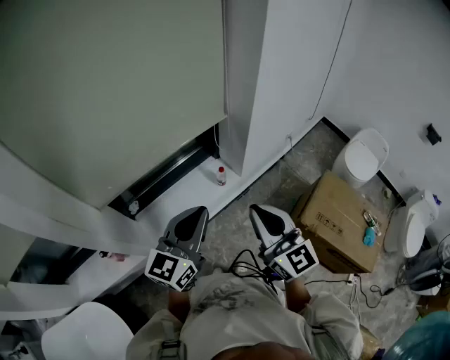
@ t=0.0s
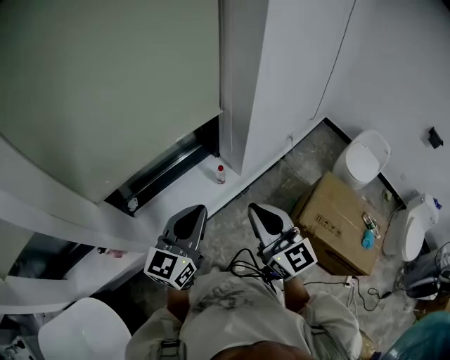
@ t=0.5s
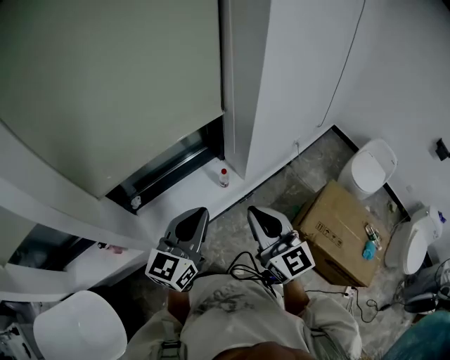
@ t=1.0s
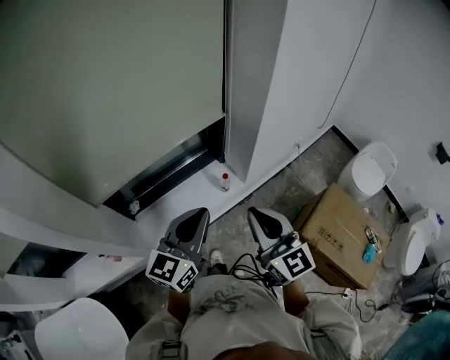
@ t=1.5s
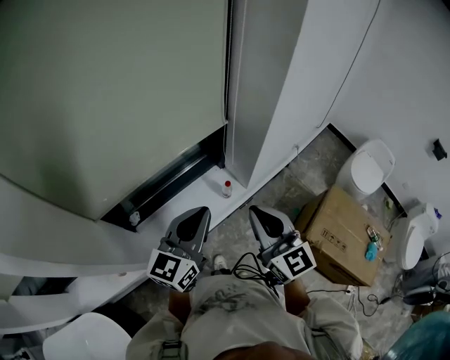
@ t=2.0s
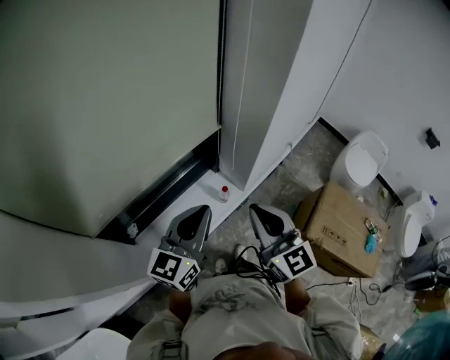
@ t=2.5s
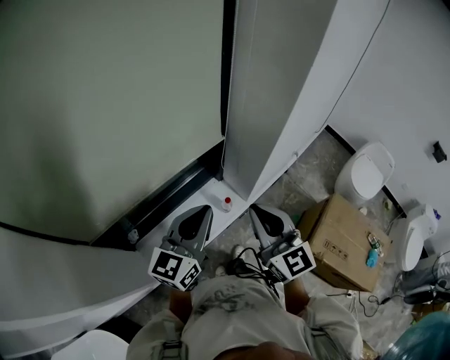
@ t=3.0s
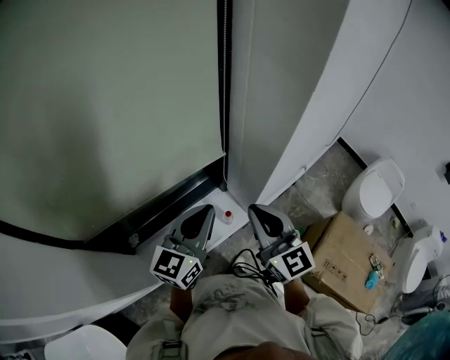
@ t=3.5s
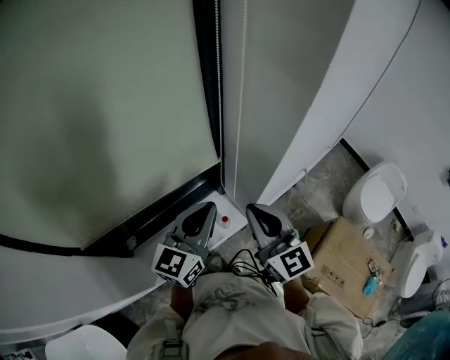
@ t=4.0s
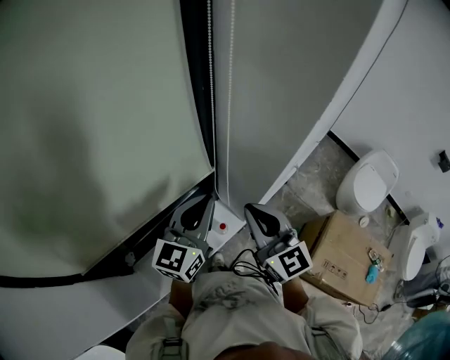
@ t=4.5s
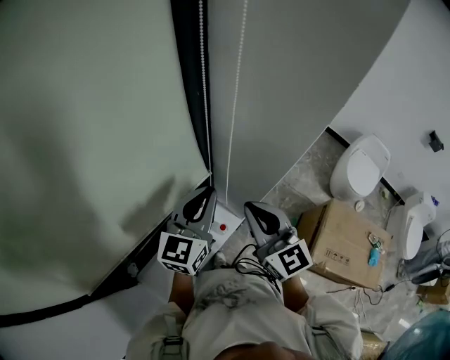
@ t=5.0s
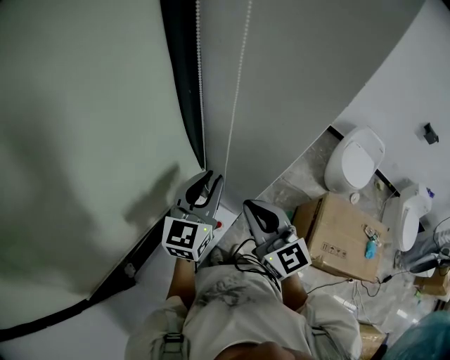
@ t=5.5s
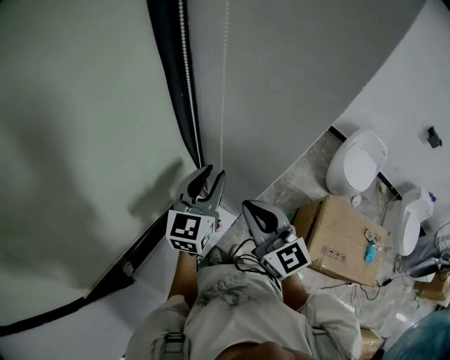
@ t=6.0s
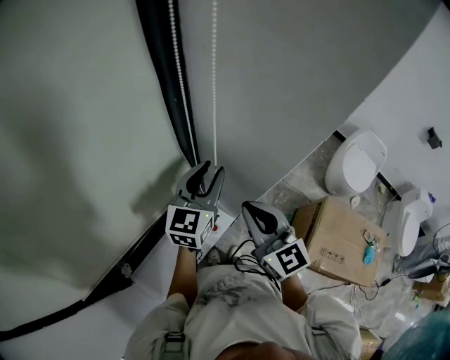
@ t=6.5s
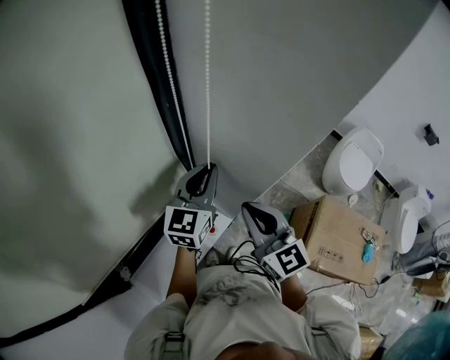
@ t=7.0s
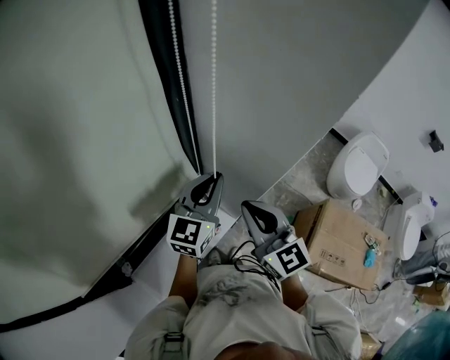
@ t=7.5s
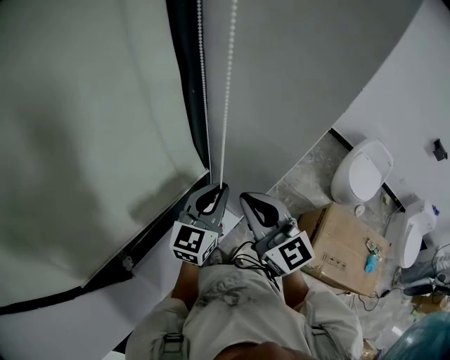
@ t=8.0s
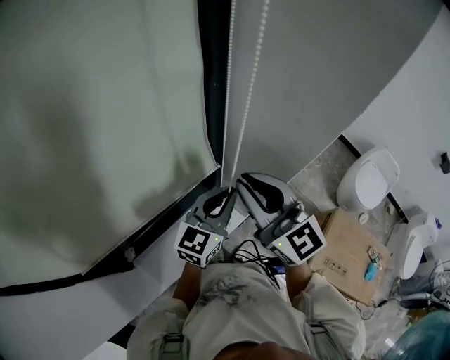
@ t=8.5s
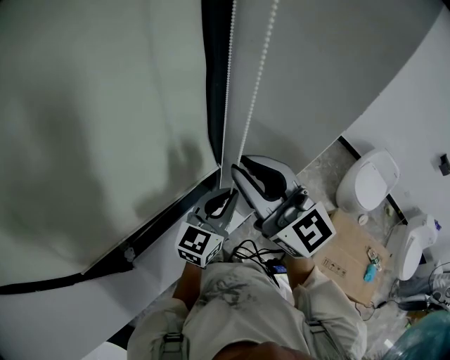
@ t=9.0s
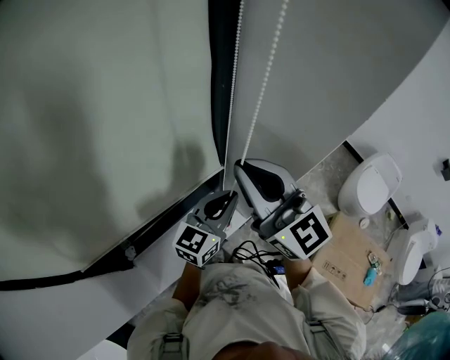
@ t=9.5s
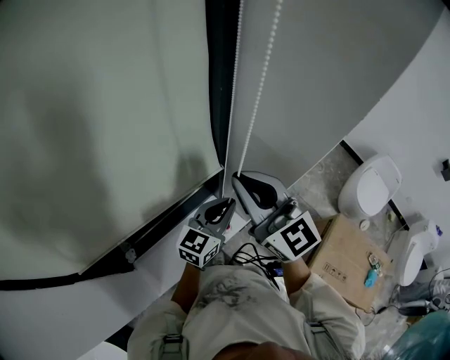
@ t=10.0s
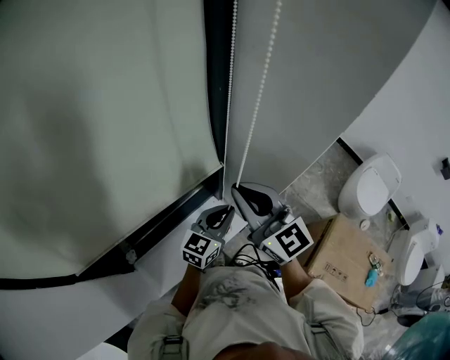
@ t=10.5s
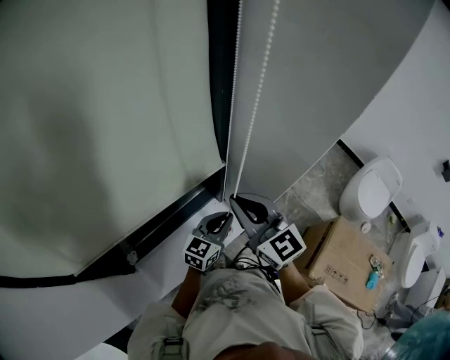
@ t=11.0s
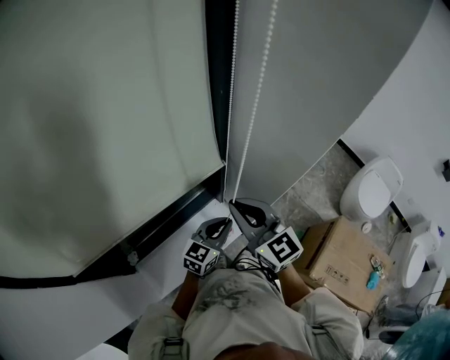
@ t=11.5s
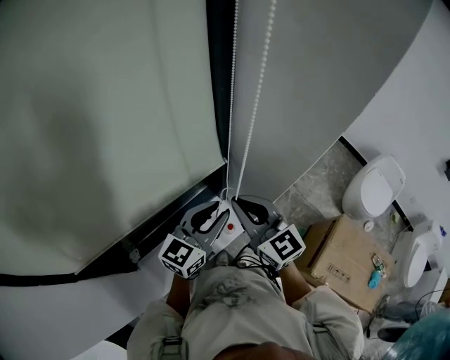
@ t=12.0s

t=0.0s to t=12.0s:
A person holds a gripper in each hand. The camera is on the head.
t=0.0s to t=2.0s: Both grippers travel together forward, about 10 cm.
t=2.0s to t=4.0s: Both grippers travel together forward, about 20 cm.
t=4.0s to t=6.0s: The right gripper shifts some 5 cm forward. Meanwhile the left gripper is displaced forward by about 15 cm, and opens up.
t=6.0s to t=8.0s: The left gripper closes its fingers.
t=8.0s to t=10.0s: The right gripper goes about 10 cm upward and to the left. Meanwhile the left gripper heads downward, covering about 5 cm.
t=10.0s to t=12.0s: The left gripper reaches roughly 10 cm downward, then returns, and opens; the right gripper travels downward by roughly 10 cm.

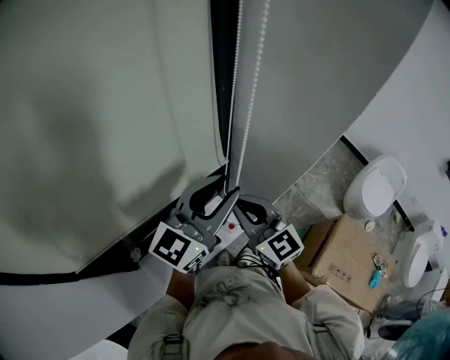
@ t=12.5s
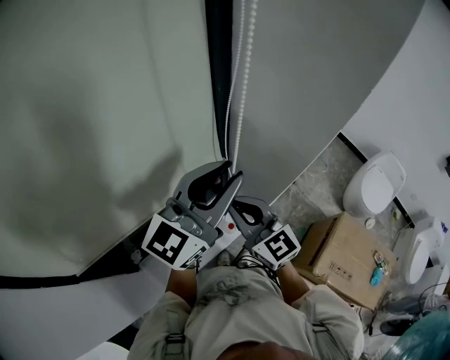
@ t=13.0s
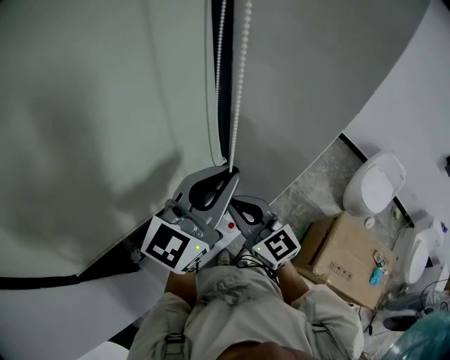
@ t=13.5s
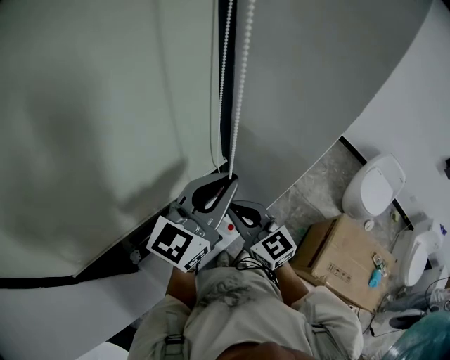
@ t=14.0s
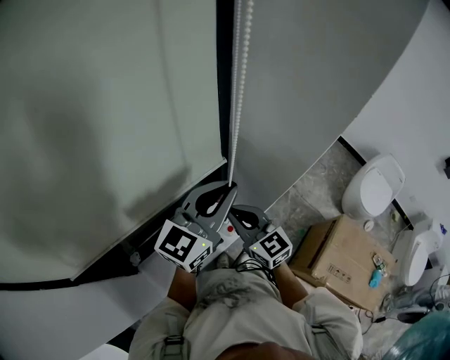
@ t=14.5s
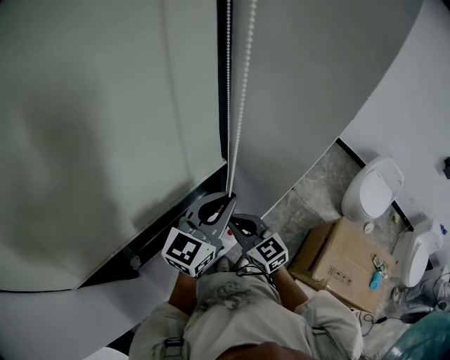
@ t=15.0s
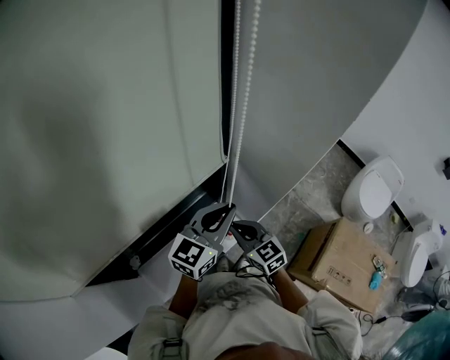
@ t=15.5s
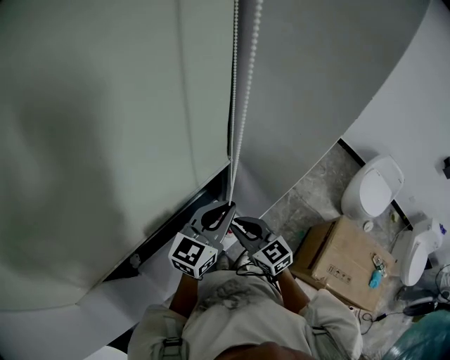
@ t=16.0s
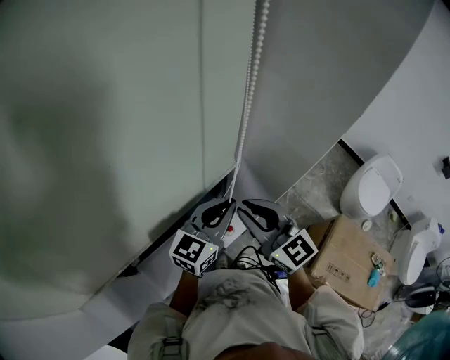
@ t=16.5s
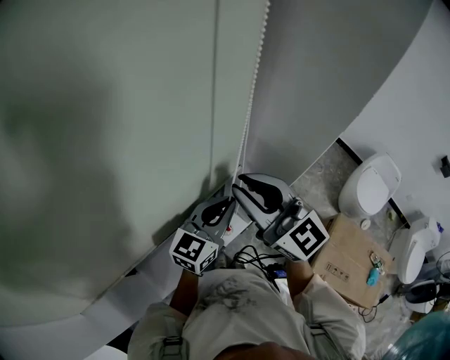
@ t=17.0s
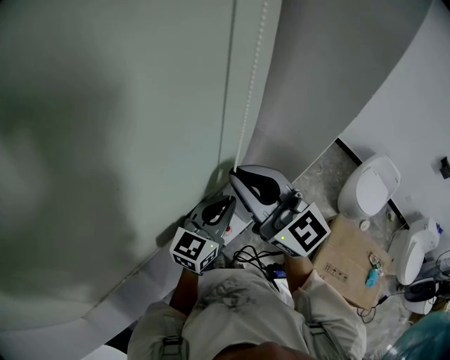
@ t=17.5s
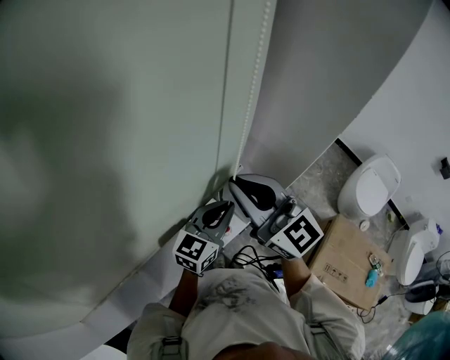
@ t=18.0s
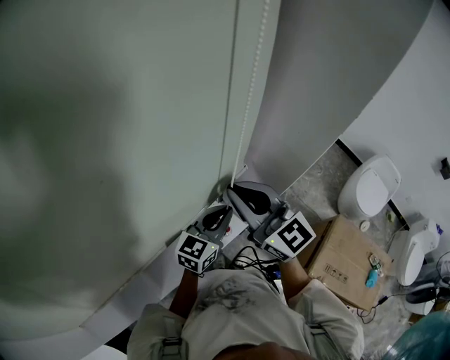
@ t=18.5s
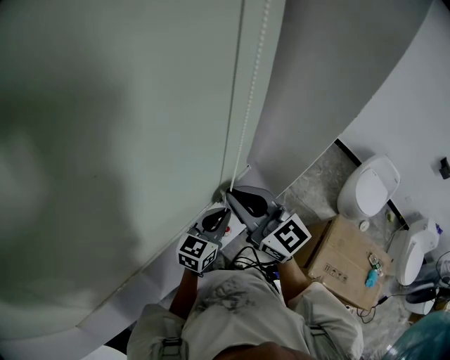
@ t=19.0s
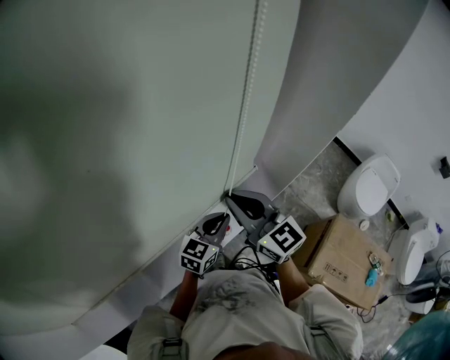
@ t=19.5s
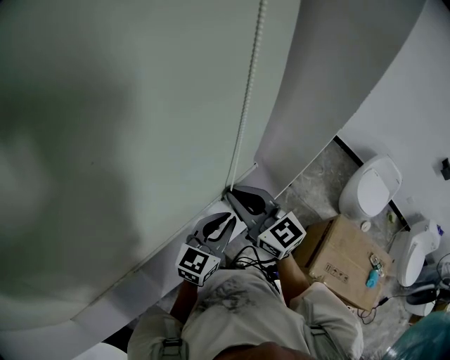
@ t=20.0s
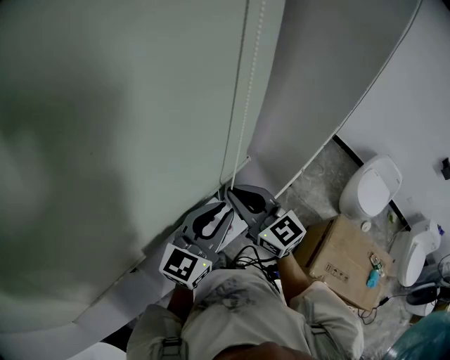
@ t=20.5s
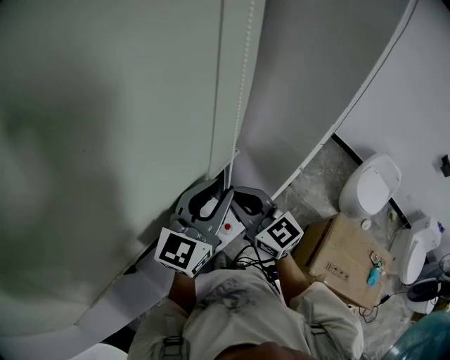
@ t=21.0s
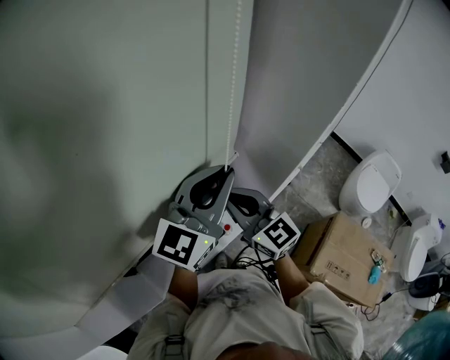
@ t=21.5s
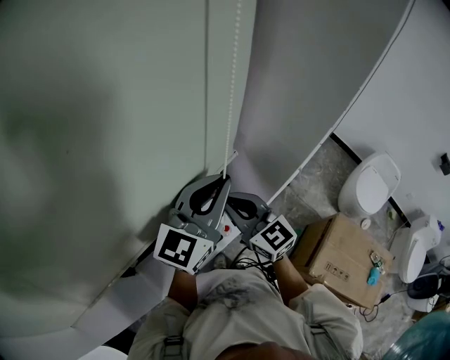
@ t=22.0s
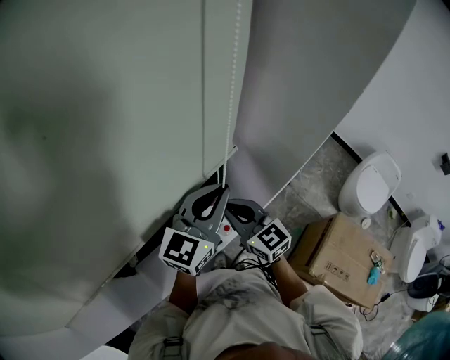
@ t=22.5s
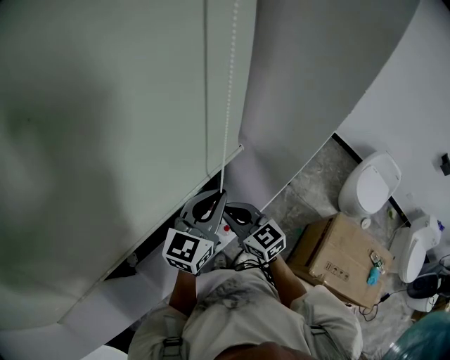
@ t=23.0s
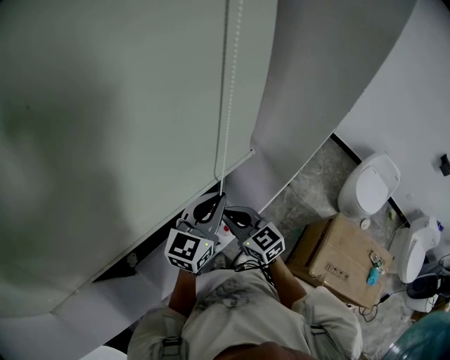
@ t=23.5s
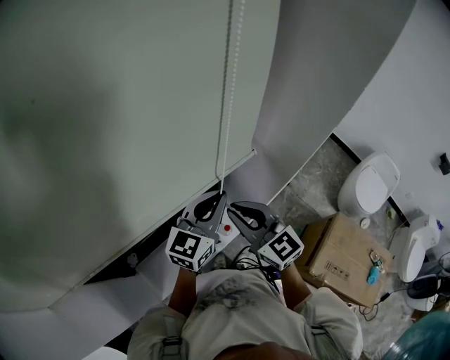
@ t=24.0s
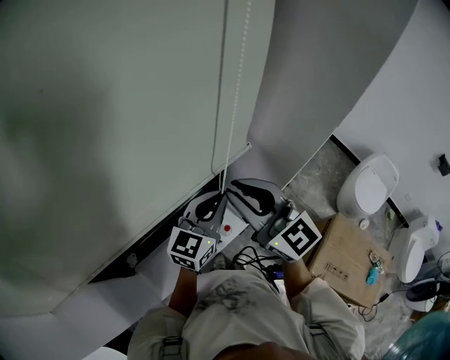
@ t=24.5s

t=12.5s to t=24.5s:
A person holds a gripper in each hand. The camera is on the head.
t=12.5s to t=14.5s: The right gripper goes about 10 cm downward. The left gripper goes upward and returns, about 5 cm each way, and closes up.
t=14.5s to t=16.5s: The right gripper shifts about 10 cm upward. The left gripper is displaced downward by about 10 cm.
t=16.5s to t=18.5s: The left gripper shifts some 10 cm downward.
t=18.5s to t=20.5s: The left gripper moves upward, roughly 10 cm. Meanwhile the right gripper heads downward, covering roughly 5 cm.
t=20.5s to t=22.5s: The left gripper is displaced forward by some 5 cm, and goes upward and returns, roughly 10 cm each way. Meanwhile the right gripper shifts roughly 5 cm downward.
t=22.5s to t=24.5s: The left gripper moves downward, about 5 cm, while the right gripper goes approximately 15 cm upward.

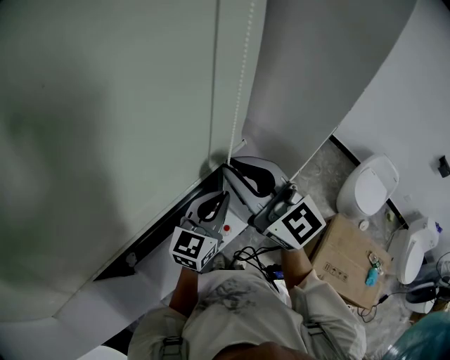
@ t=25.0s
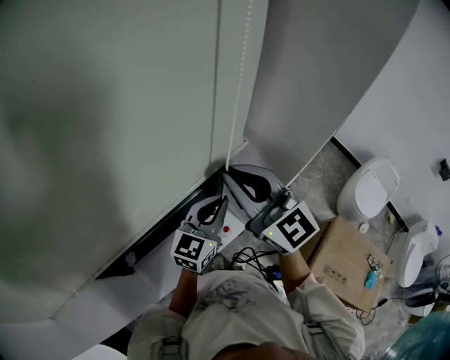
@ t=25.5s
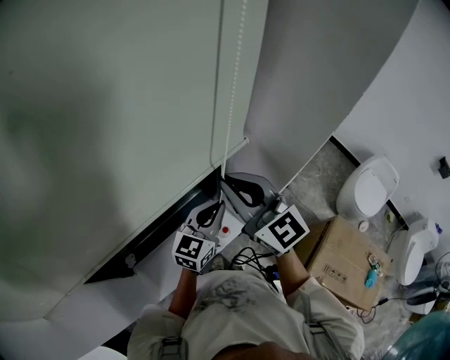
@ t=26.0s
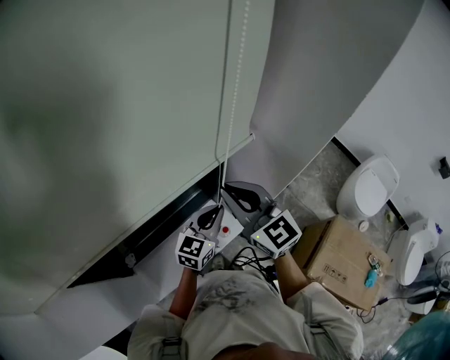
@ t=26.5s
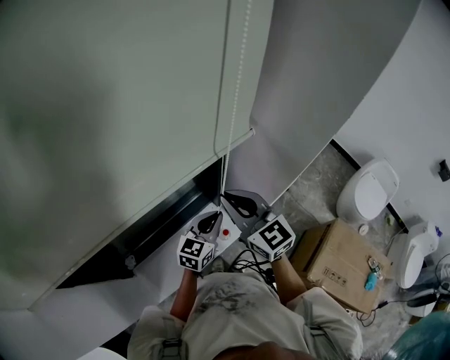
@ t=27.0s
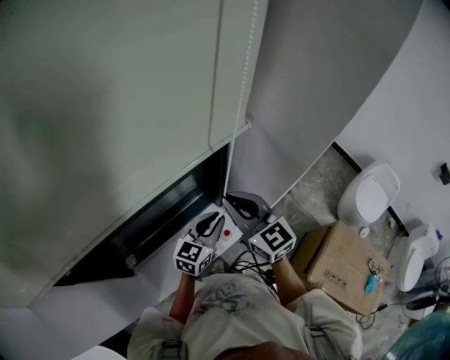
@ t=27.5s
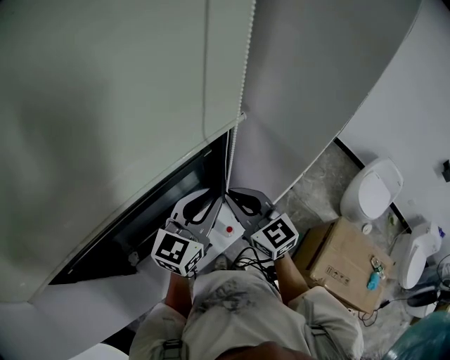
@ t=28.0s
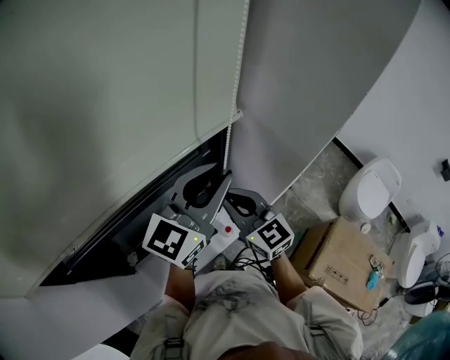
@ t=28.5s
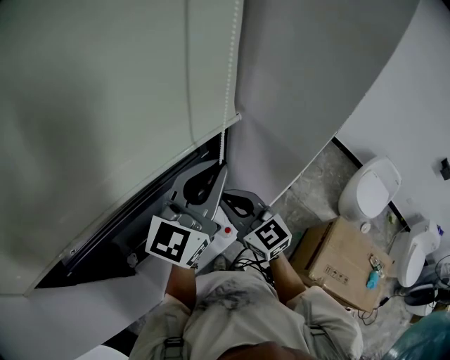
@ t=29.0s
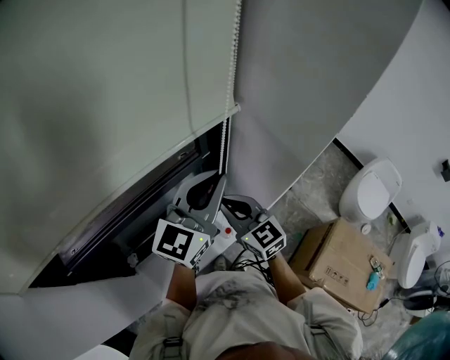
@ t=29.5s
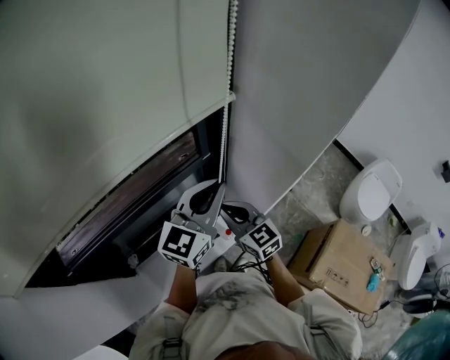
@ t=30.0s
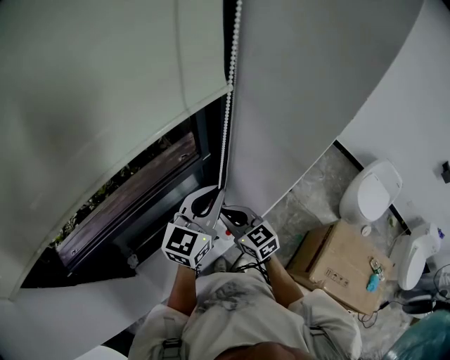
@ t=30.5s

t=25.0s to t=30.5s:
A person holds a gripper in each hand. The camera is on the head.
t=25.0s to t=27.0s: Both grippers travel together downward, roughly 15 cm.
t=27.0s to t=28.5s: The left gripper is displaced upward by some 25 cm, and turns by roughly 30 degrees.
t=28.5s to t=30.5s: Both grippers move downward, about 10 cm.
